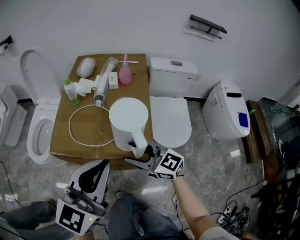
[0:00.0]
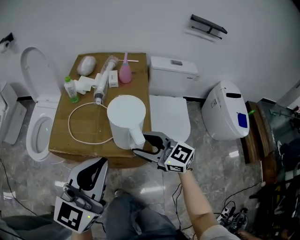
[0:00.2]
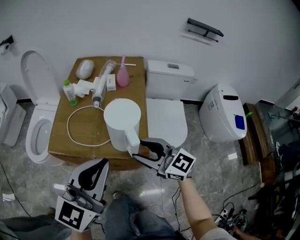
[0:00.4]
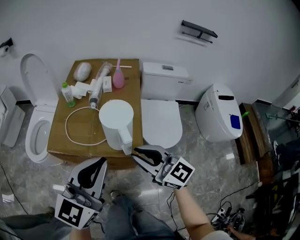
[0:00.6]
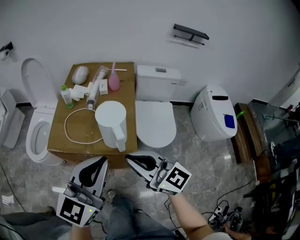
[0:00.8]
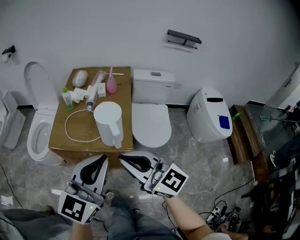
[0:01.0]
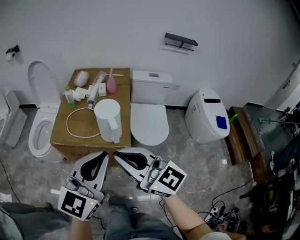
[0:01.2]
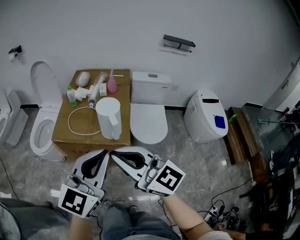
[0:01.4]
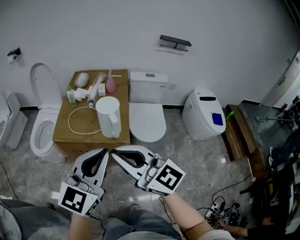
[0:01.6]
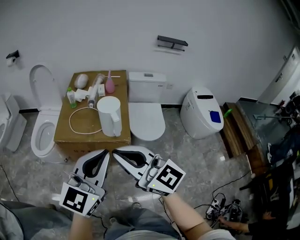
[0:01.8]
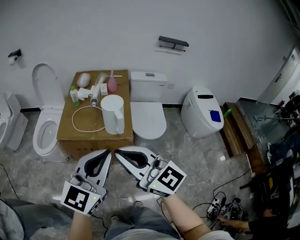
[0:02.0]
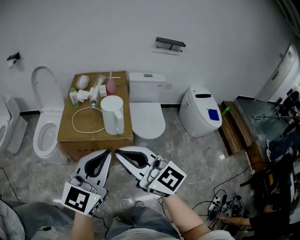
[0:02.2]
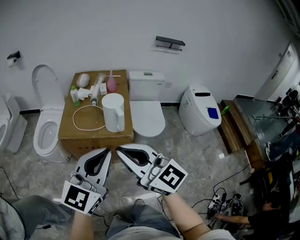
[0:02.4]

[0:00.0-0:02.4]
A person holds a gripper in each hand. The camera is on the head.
0:00.0 to 0:01.2: The left gripper heads backward and upward, covering some 15 cm; the right gripper heads upward and backward, covering about 30 cm, and closes.
0:01.2 to 0:02.4: Both grippers move backward and to the left, approximately 10 cm.

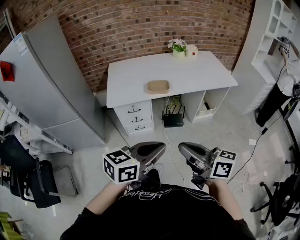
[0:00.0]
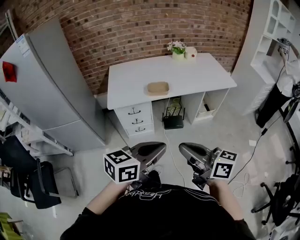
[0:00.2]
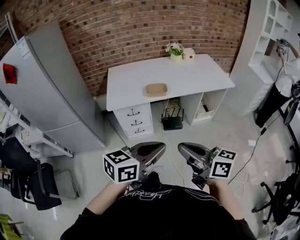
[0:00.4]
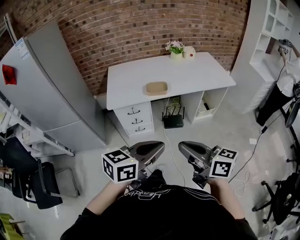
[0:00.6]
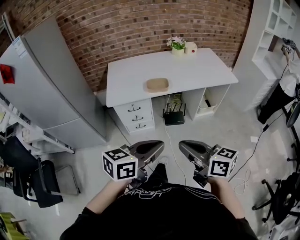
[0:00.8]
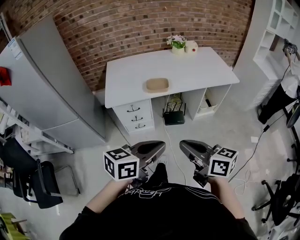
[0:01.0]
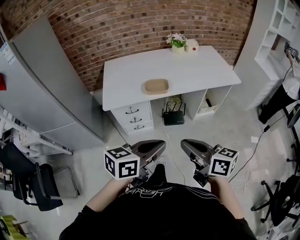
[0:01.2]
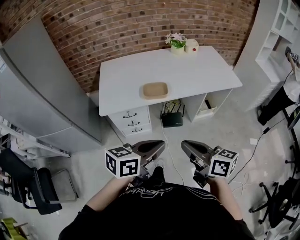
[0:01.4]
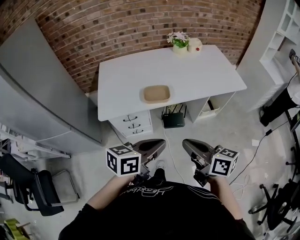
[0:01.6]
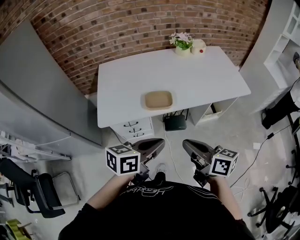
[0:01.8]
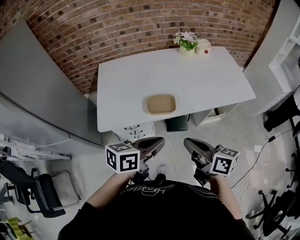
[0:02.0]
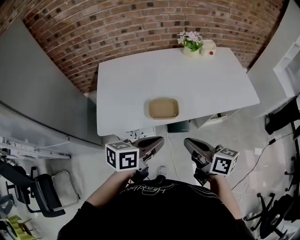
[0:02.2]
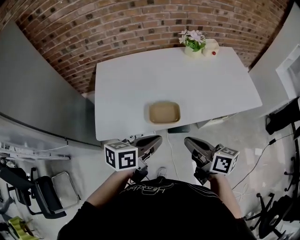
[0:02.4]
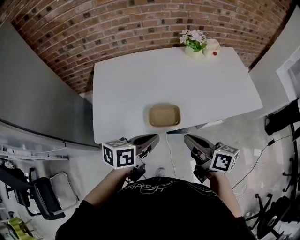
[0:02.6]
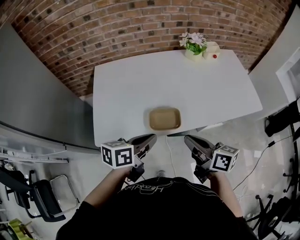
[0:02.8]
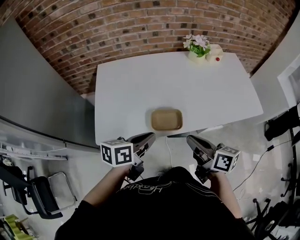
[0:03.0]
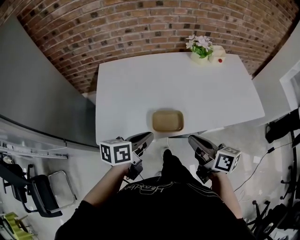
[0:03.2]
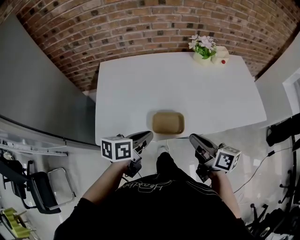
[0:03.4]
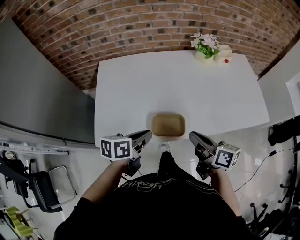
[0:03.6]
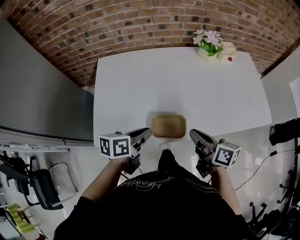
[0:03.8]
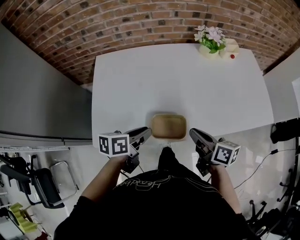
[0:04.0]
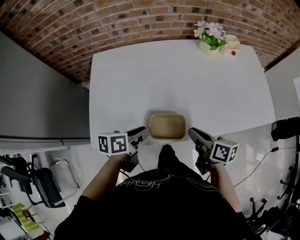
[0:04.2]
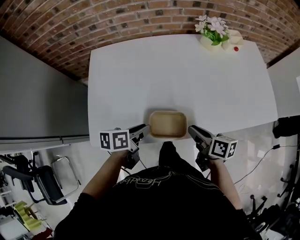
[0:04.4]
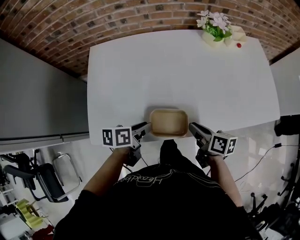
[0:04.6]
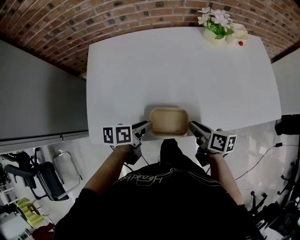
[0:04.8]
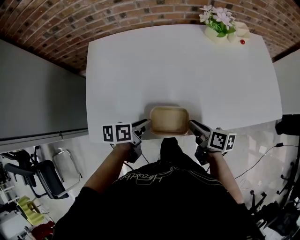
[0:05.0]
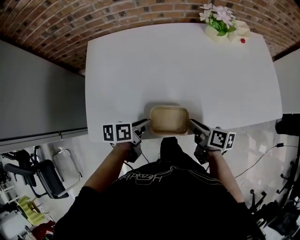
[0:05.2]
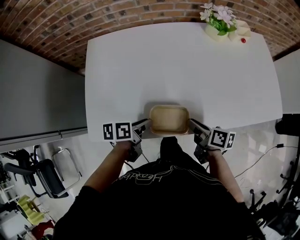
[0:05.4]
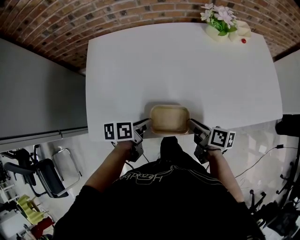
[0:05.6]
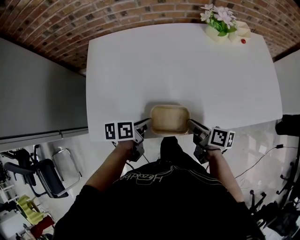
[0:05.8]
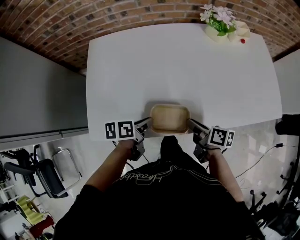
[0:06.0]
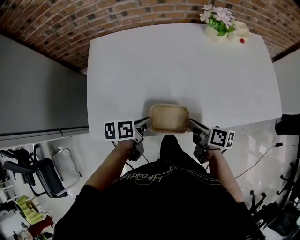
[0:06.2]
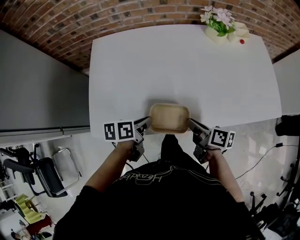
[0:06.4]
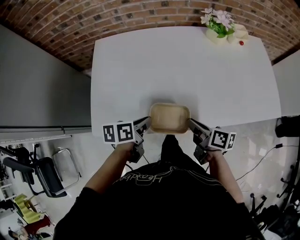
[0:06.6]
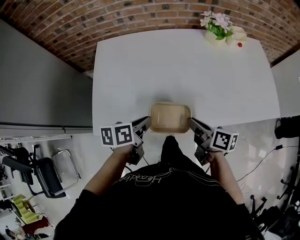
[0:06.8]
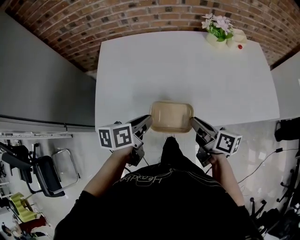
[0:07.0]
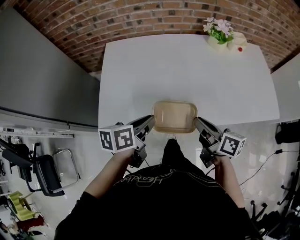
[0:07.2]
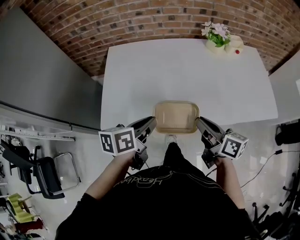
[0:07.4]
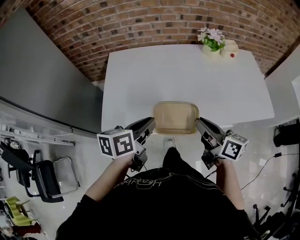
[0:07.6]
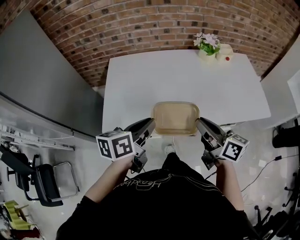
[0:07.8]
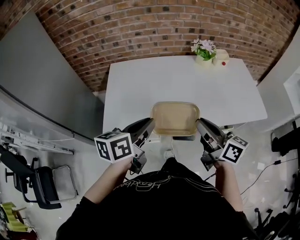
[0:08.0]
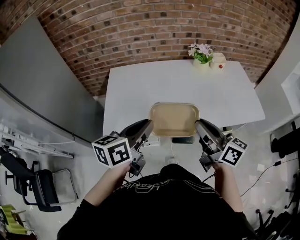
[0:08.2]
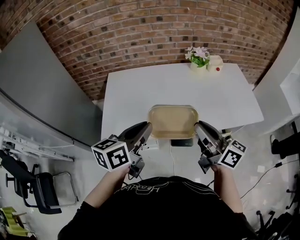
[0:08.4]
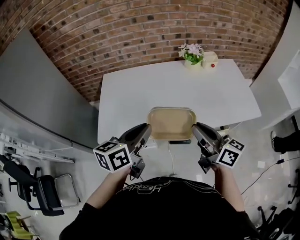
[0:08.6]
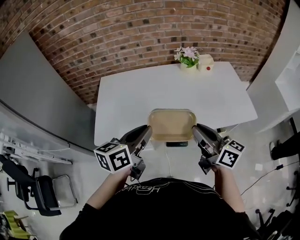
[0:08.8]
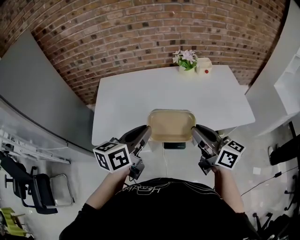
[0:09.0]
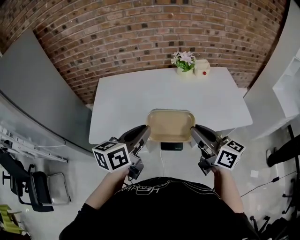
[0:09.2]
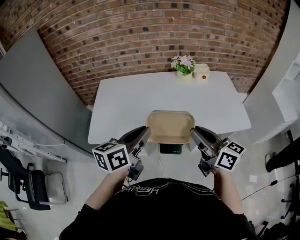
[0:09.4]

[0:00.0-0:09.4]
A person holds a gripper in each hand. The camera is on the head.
0:00.0 to 0:01.6: The two grippers go roughly 15 cm forward.
0:01.6 to 0:03.2: The right gripper shifts roughly 25 cm forward, while the left gripper heads forward and to the left, covering approximately 25 cm, and rotates roughly 20 degrees.
0:03.2 to 0:04.8: Both grippers travel together downward and forward, some 20 cm. The left gripper turns by roughly 20 degrees, and opens.
0:04.8 to 0:06.2: The grippers move only a little.
0:06.2 to 0:07.8: Both grippers move upward, roughly 20 cm. The left gripper turns by approximately 30 degrees, while the right gripper changes its angle by some 30 degrees.
0:07.8 to 0:09.4: The two grippers go approximately 15 cm to the right and upward.

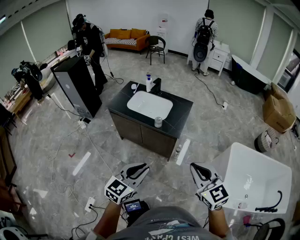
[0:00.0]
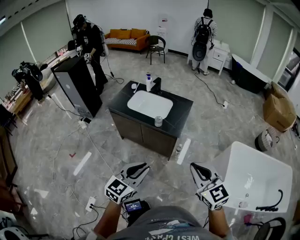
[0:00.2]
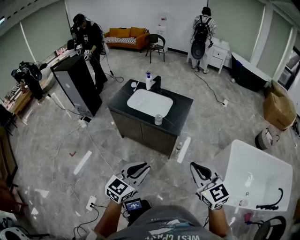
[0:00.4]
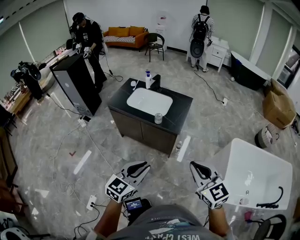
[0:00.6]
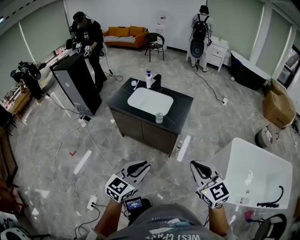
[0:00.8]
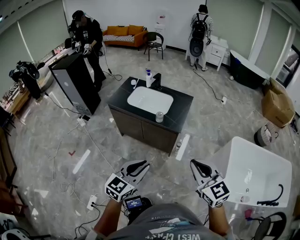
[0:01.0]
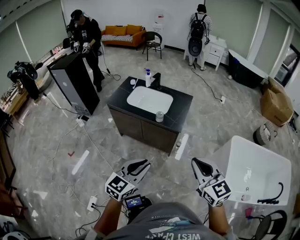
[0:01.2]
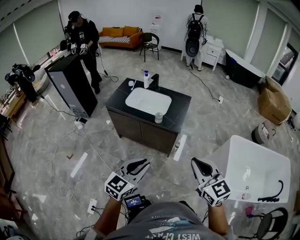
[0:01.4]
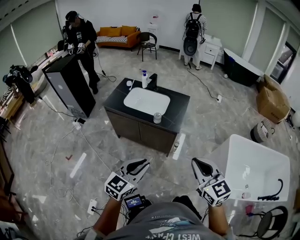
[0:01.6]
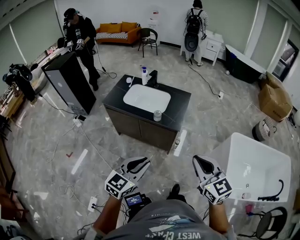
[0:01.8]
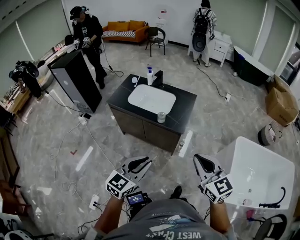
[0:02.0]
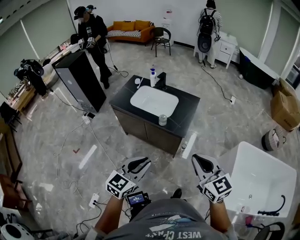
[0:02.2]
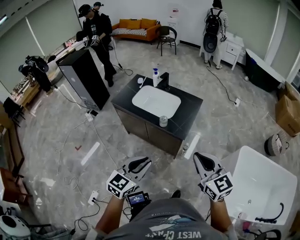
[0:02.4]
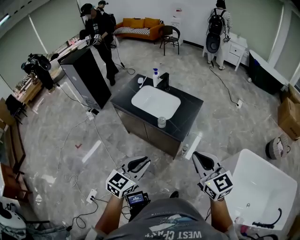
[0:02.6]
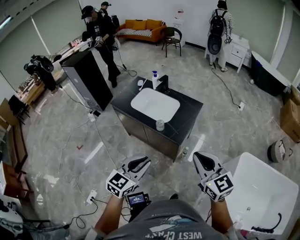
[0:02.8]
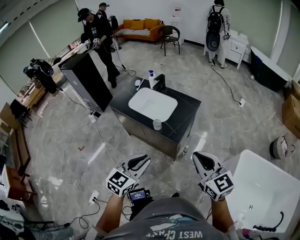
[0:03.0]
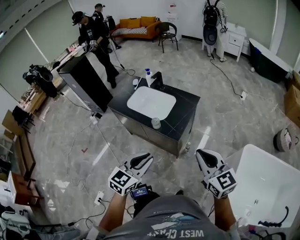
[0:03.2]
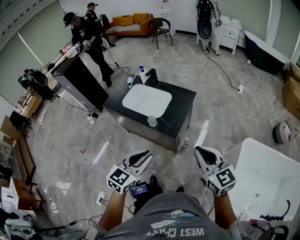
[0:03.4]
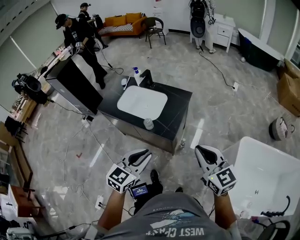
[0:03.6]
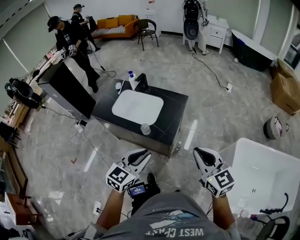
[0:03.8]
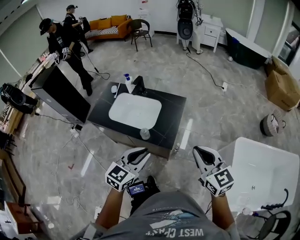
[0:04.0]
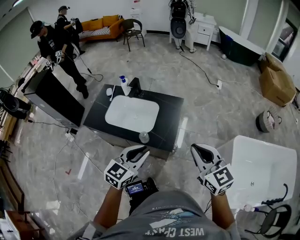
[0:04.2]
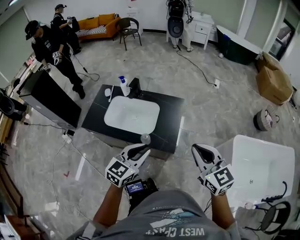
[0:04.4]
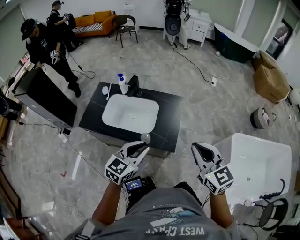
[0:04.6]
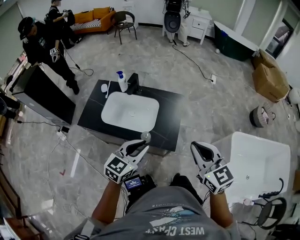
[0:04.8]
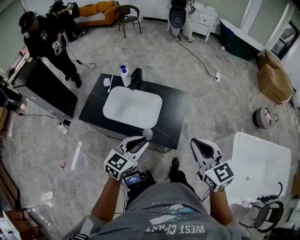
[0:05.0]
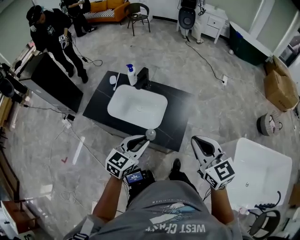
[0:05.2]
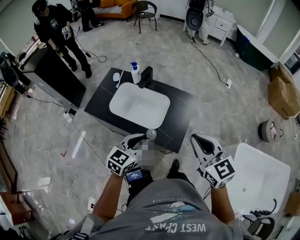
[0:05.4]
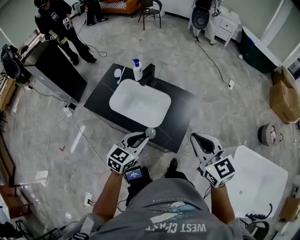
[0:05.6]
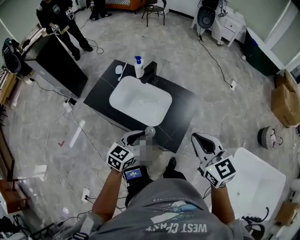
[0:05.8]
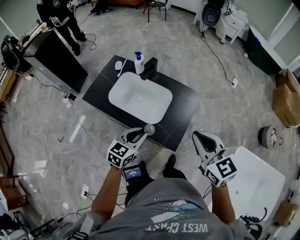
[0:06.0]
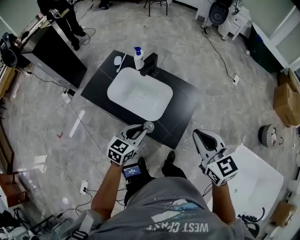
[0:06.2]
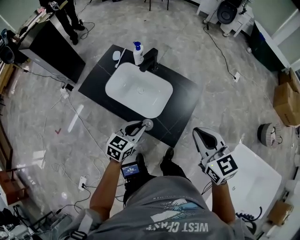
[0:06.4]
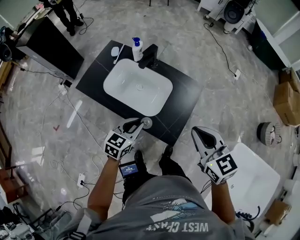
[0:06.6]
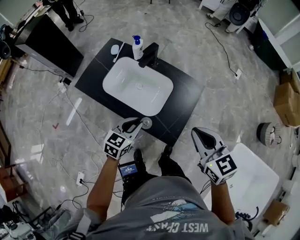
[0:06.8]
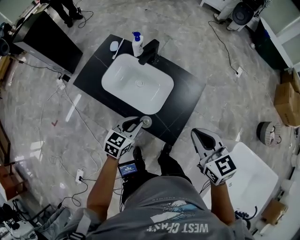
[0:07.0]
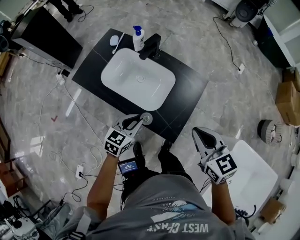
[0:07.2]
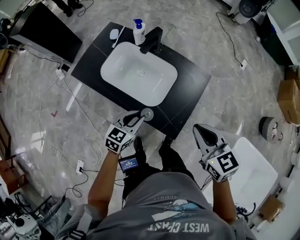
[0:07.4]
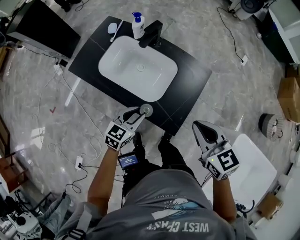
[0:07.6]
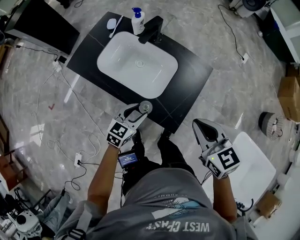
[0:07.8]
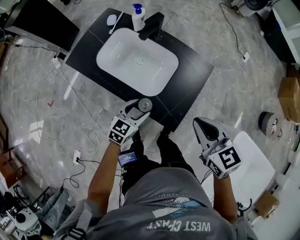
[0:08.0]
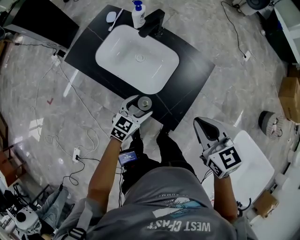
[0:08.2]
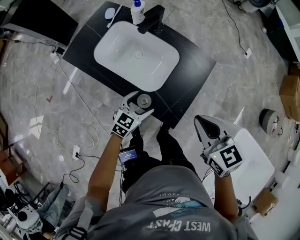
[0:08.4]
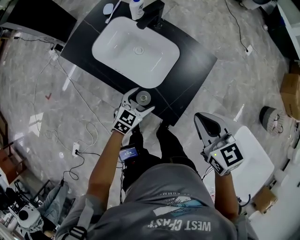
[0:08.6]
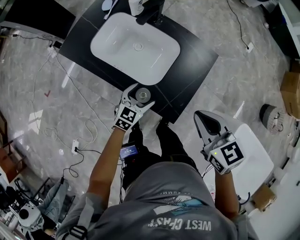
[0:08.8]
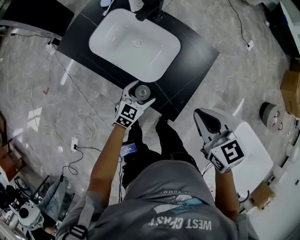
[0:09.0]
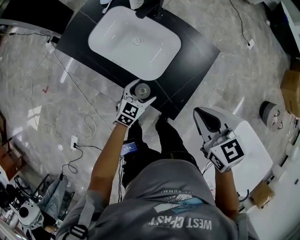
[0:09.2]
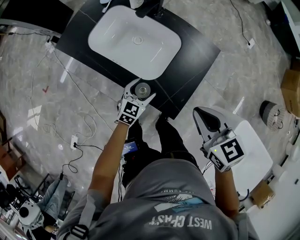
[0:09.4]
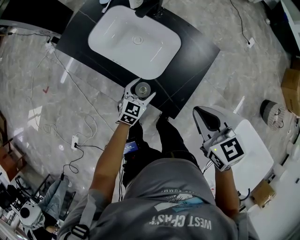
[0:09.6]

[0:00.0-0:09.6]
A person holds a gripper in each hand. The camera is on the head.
0:00.0 to 0:01.6: The grippers make only small movements.
0:01.6 to 0:03.2: The left gripper moves to the right and forward, about 15 cm, while the right gripper is displaced forward and to the right by roughly 20 cm.
0:03.2 to 0:04.8: The grippers both shift forward and to the left by about 20 cm.
0:04.8 to 0:06.4: The left gripper is displaced downward and forward by roughly 15 cm, and changes its angle by about 20 degrees. The right gripper is displaced forward by some 10 cm.
0:06.4 to 0:08.0: Both grippers travel together downward, approximately 10 cm. The left gripper opens its fingers.
0:08.0 to 0:09.6: The left gripper is displaced downward by roughly 5 cm.

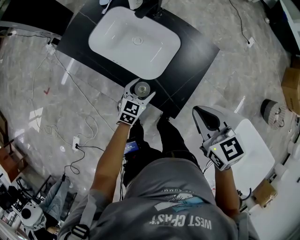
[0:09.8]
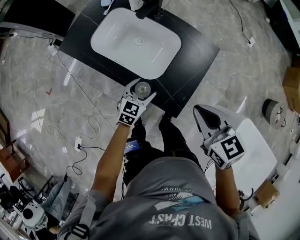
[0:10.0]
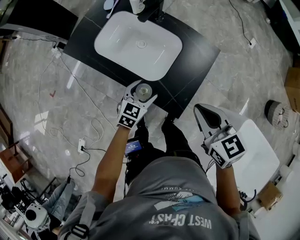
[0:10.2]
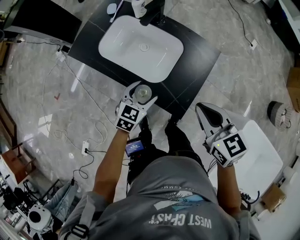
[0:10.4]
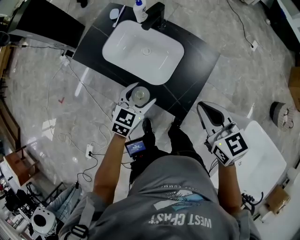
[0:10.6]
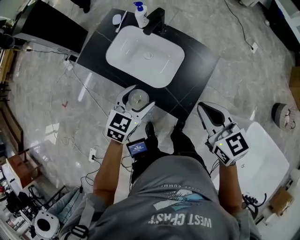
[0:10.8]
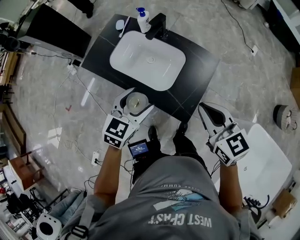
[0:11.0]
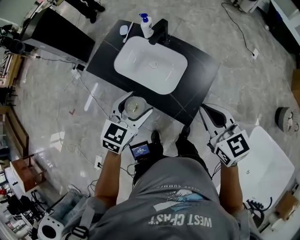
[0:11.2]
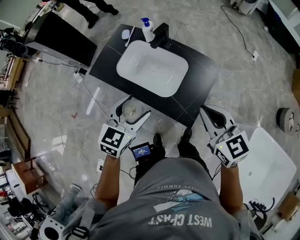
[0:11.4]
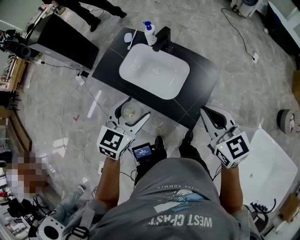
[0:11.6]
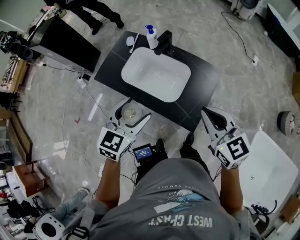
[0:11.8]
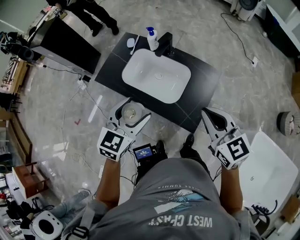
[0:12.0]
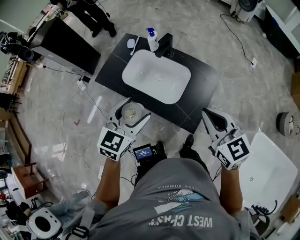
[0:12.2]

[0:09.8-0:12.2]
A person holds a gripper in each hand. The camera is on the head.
0:09.8 to 0:11.0: The right gripper heads upward, covering some 5 cm; the left gripper shifts some 20 cm upward.
0:11.0 to 0:12.2: The right gripper moves some 5 cm. Meanwhile the left gripper is displaced upward by approximately 10 cm.
